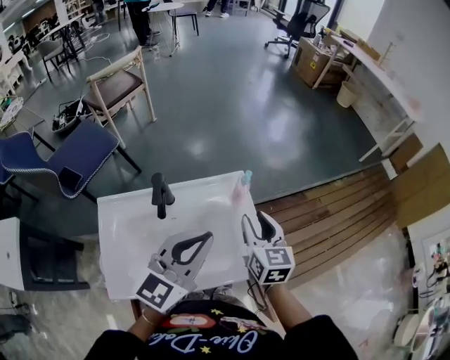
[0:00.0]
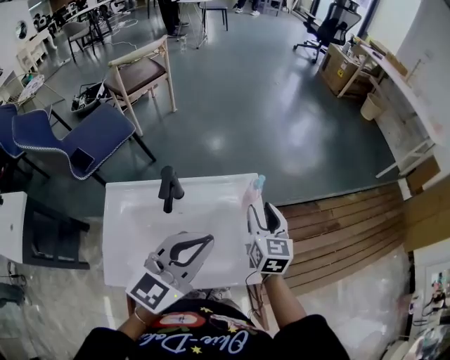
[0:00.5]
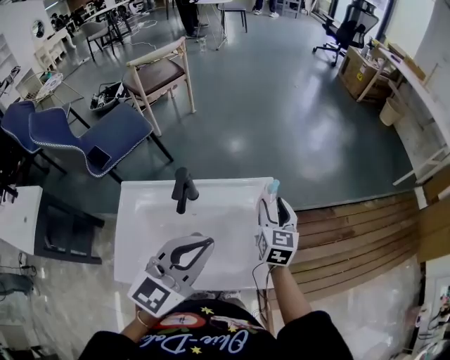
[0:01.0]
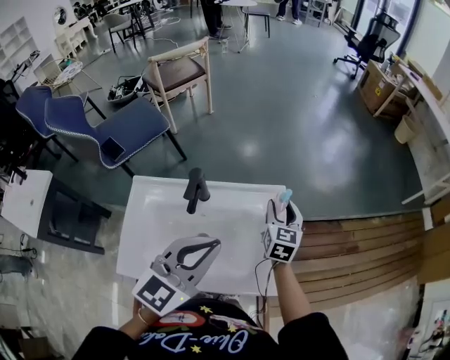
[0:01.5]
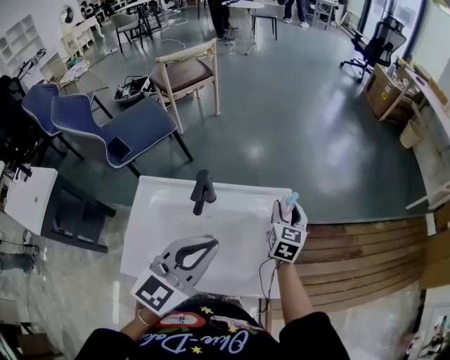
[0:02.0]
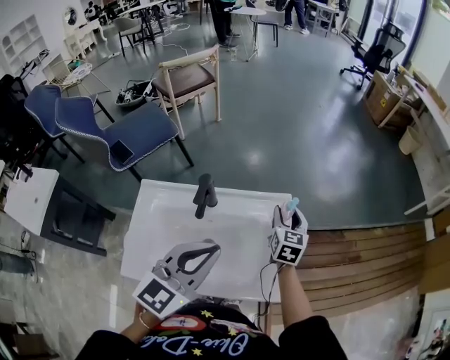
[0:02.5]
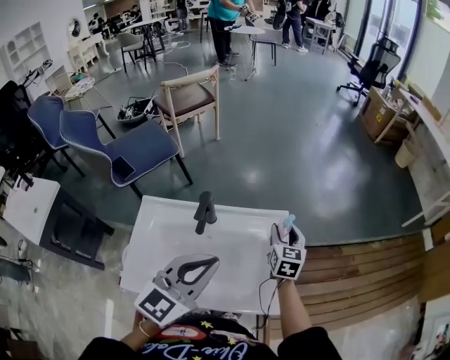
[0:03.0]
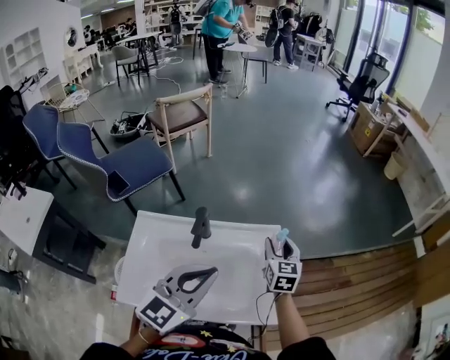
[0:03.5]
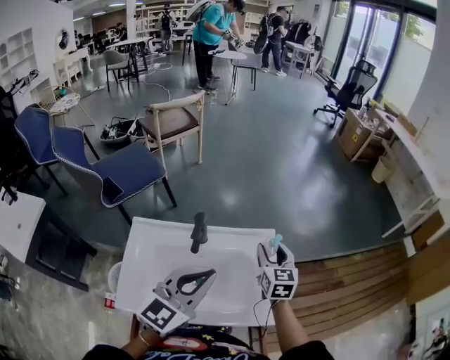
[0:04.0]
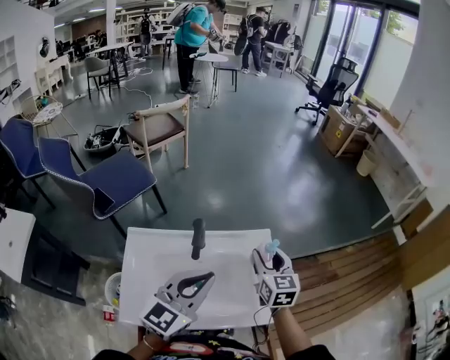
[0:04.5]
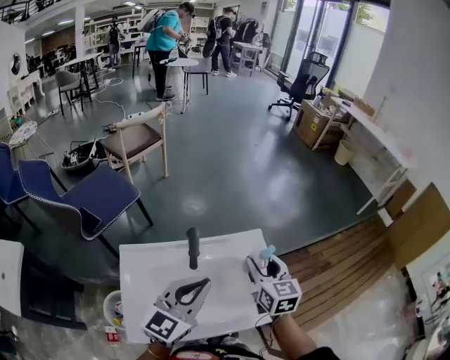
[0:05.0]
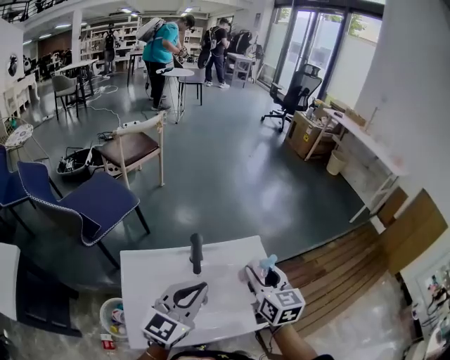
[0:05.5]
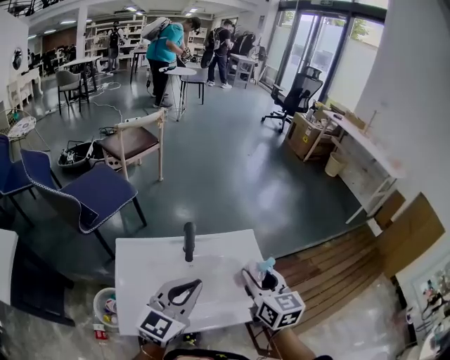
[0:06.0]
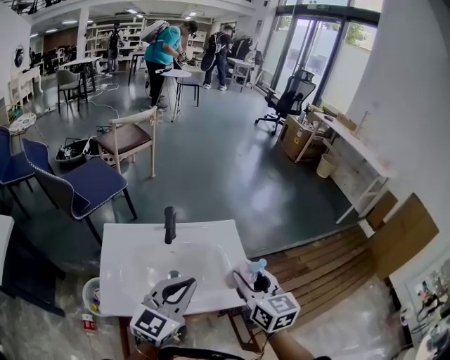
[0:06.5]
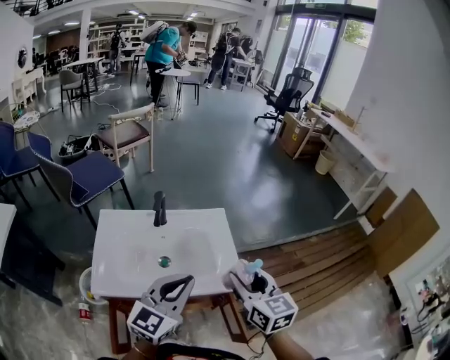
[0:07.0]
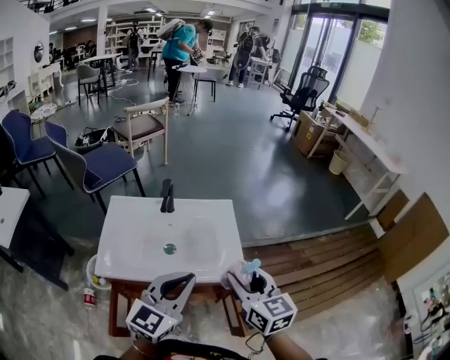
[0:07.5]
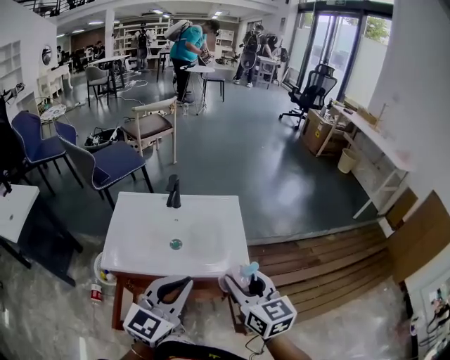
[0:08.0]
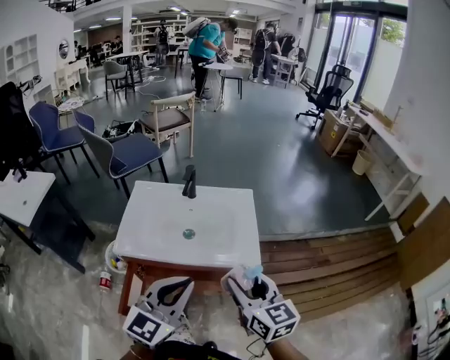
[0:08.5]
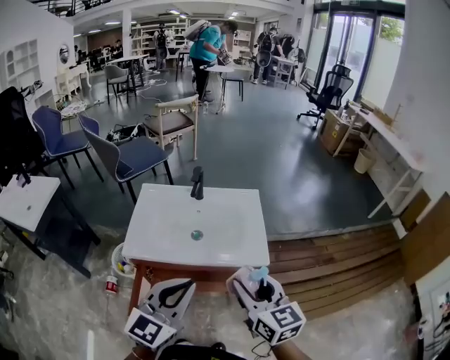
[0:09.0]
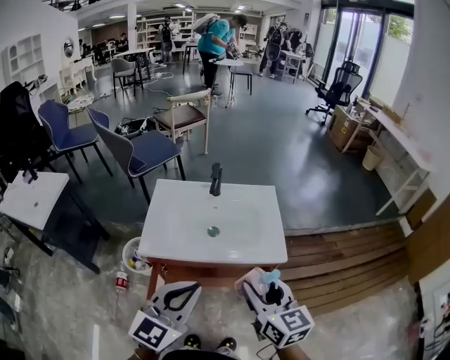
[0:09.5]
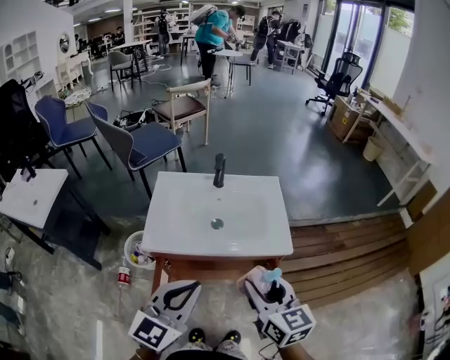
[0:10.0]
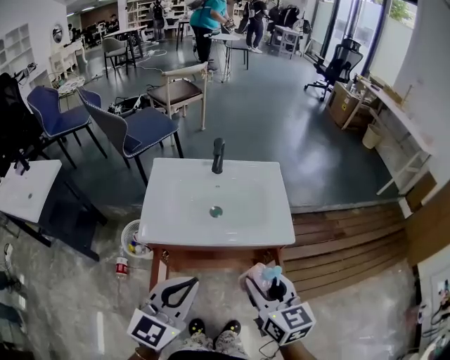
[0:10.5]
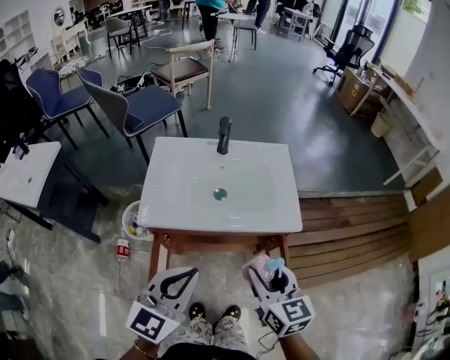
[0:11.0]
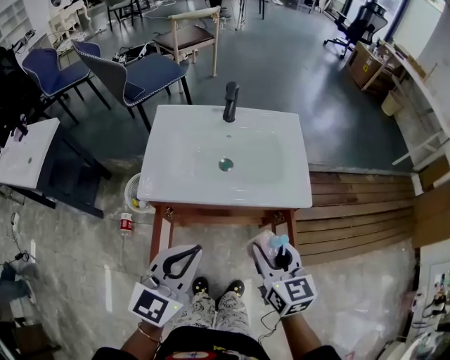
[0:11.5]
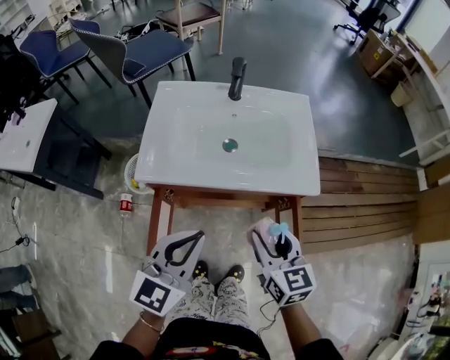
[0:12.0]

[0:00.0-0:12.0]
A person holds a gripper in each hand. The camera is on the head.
0:00.0 to 0:02.0: The right gripper shifts about 15 cm forward and downward.
0:02.0 to 0:04.0: The right gripper heads upward, covering approximately 5 cm.
0:04.0 to 0:06.0: The right gripper moves backward and upward, roughly 15 cm. The left gripper ends up some 5 cm from where it was.
0:06.0 to 0:08.0: Both grippers travel together backward and to the right, roughly 20 cm.
0:08.0 to 0:10.0: The two grippers go about 15 cm to the left and backward.
0:10.0 to 0:12.0: Both grippers move downward, about 10 cm.

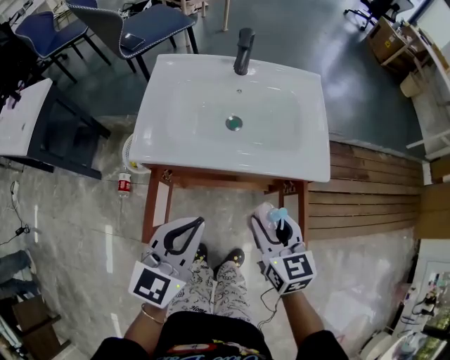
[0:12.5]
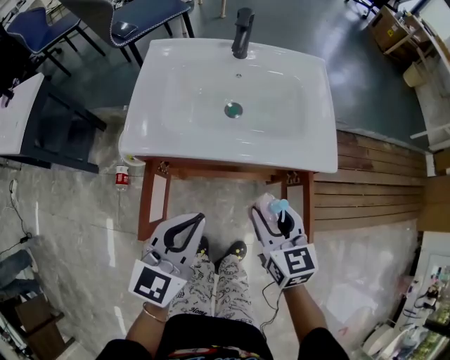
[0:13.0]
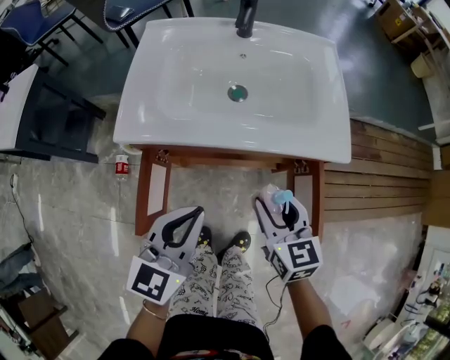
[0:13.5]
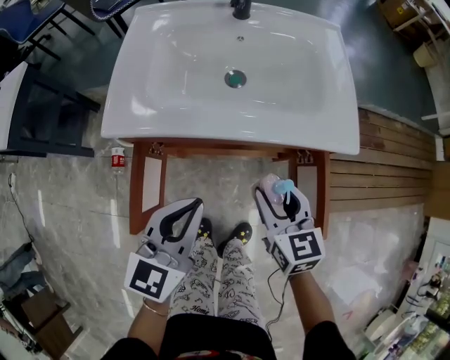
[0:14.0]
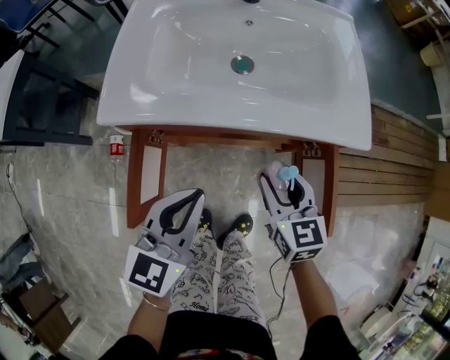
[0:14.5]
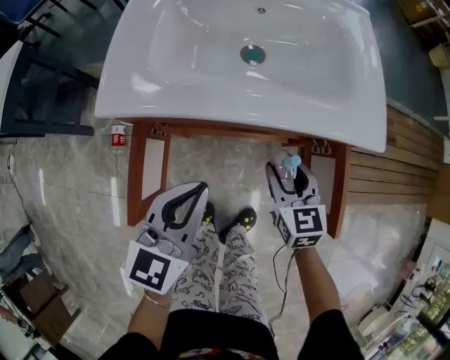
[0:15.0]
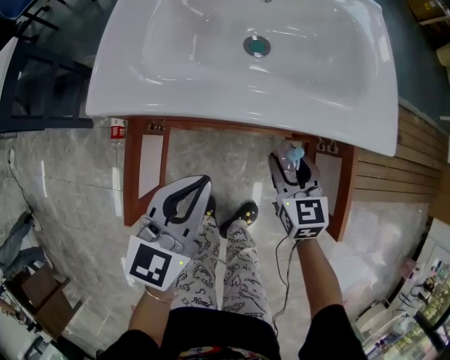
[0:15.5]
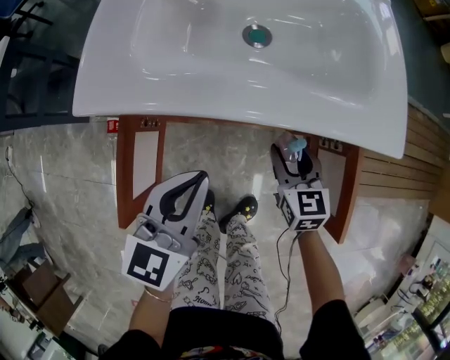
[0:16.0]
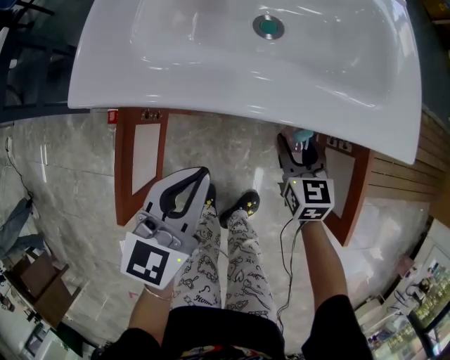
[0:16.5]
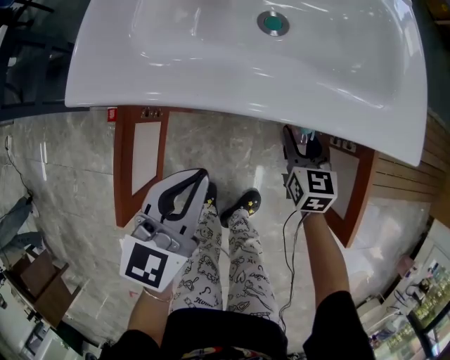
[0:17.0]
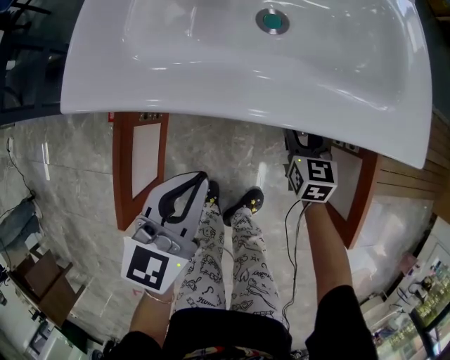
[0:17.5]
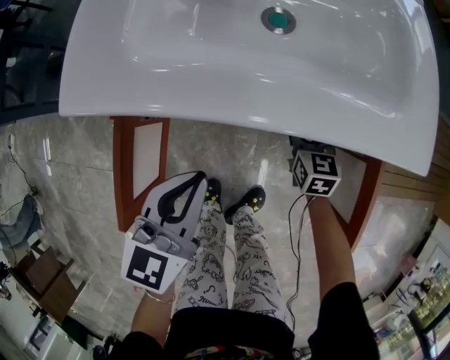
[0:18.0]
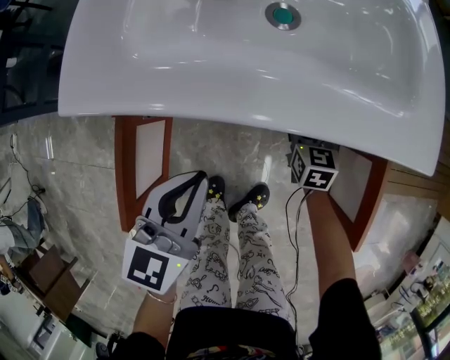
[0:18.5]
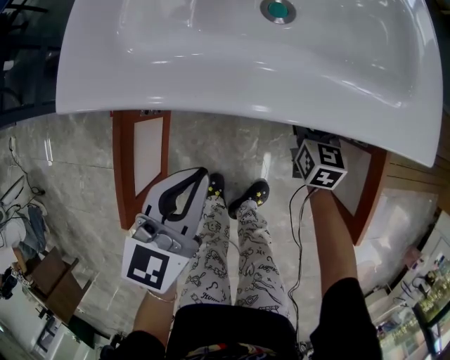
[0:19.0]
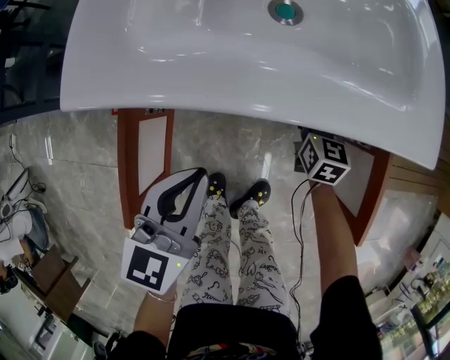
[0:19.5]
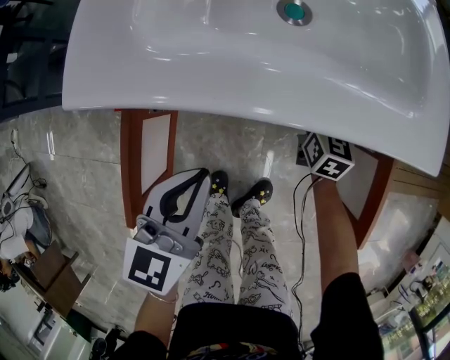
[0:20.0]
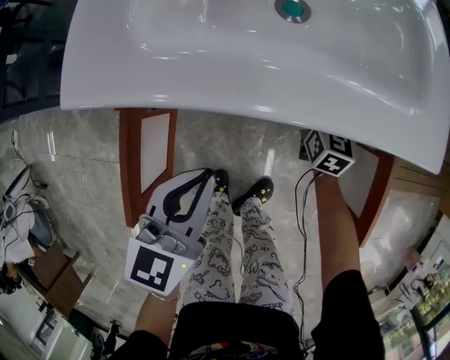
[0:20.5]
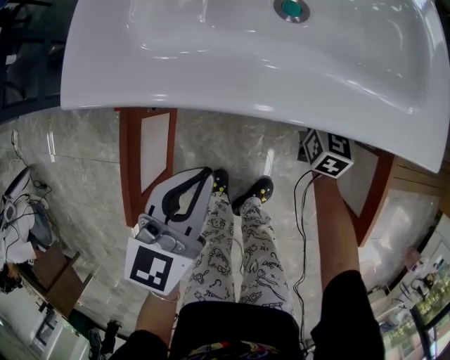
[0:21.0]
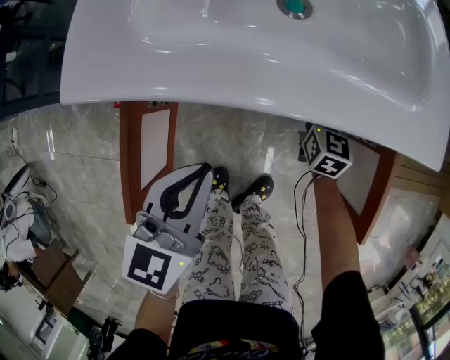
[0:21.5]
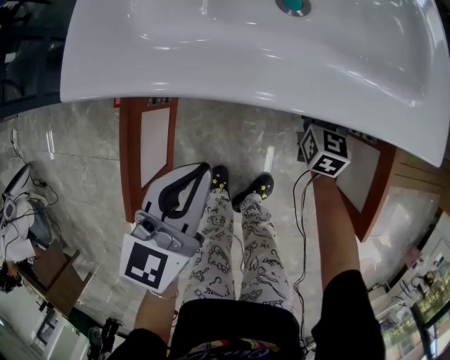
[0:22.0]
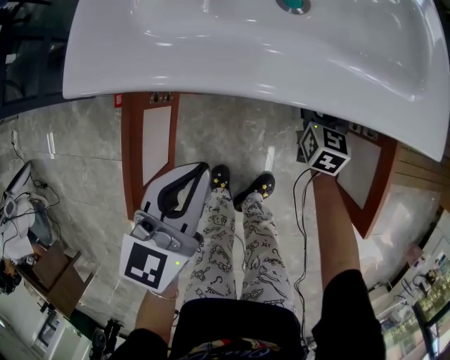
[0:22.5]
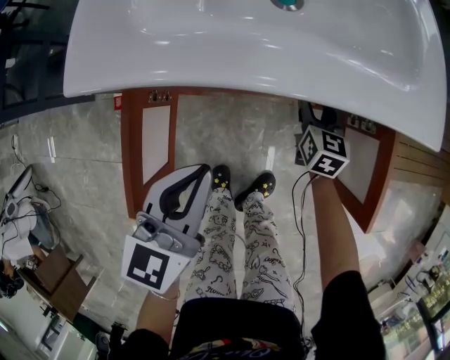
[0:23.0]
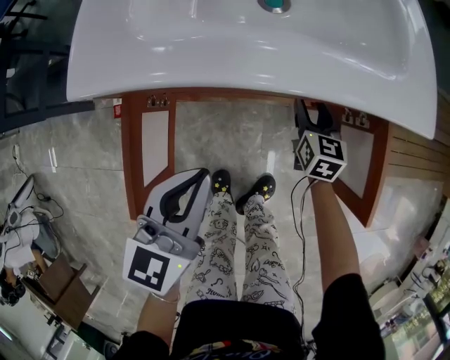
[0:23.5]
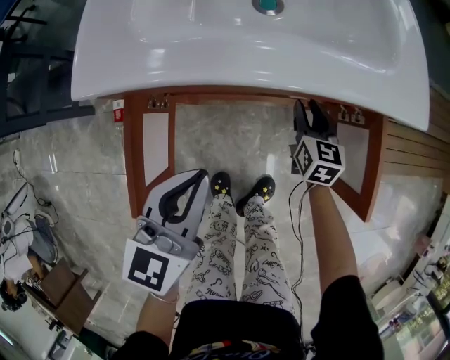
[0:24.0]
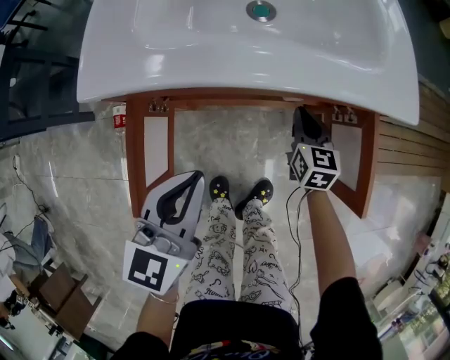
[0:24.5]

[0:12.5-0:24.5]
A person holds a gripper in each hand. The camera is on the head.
0:12.5 to 0:14.5: Both grippers move downward, approximately 10 cm.
0:14.5 to 0:16.5: The right gripper goes approximately 15 cm downward and forward; the left gripper heads downward, covering some 5 cm.
0:16.5 to 0:18.5: The right gripper travels downward by approximately 10 cm.
0:18.5 to 0:20.5: The right gripper heads forward, covering about 5 cm.
0:20.5 to 0:22.5: The grippers stay close to where they were, moving slightly.
0:22.5 to 0:24.5: The right gripper heads backward, covering some 5 cm, and closes its fingers.

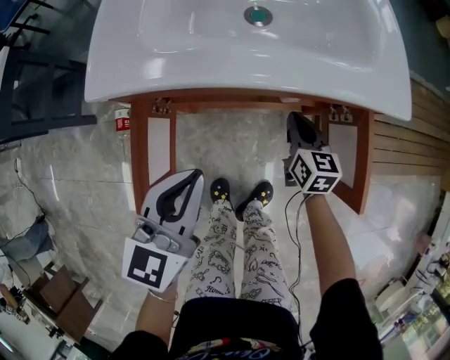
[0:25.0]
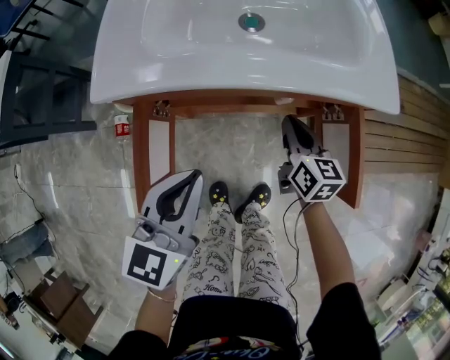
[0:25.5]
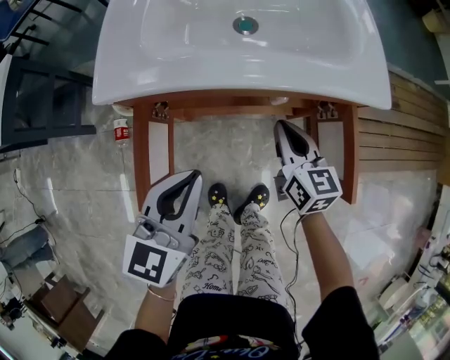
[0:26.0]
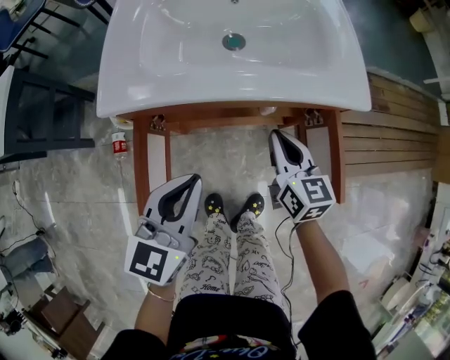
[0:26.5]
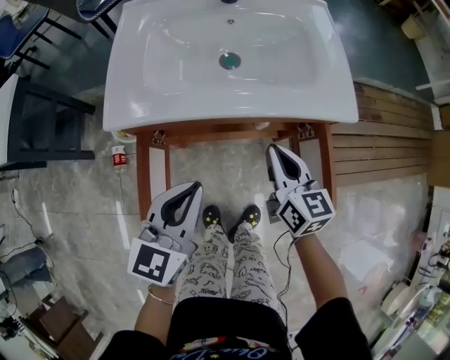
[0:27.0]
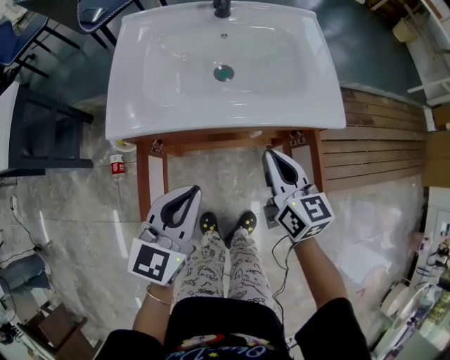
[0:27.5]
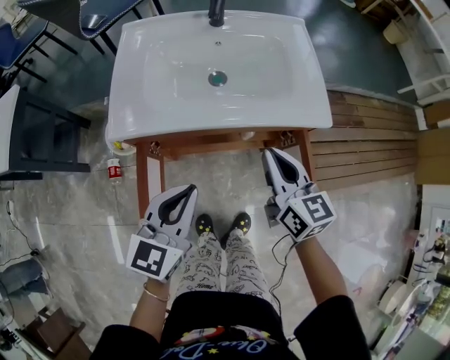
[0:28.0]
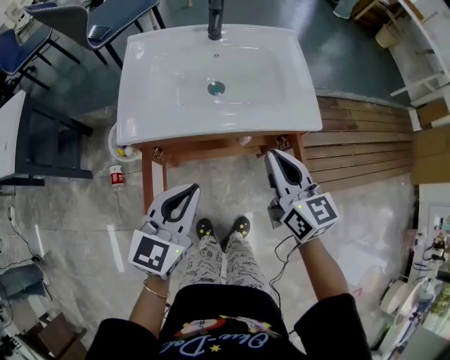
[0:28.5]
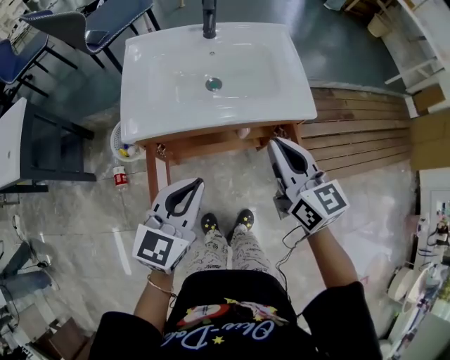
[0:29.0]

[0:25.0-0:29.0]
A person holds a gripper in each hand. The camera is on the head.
0:25.0 to 0:27.0: The right gripper shifts approximately 15 cm upward, while the left gripper changes place by some 5 cm.
0:27.0 to 0:29.0: The right gripper goes approximately 20 cm upward, while the left gripper shifts about 10 cm upward.
